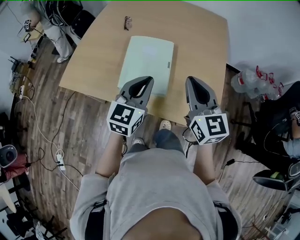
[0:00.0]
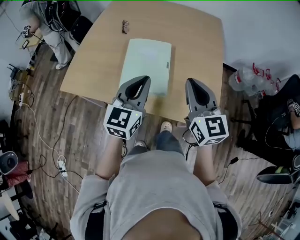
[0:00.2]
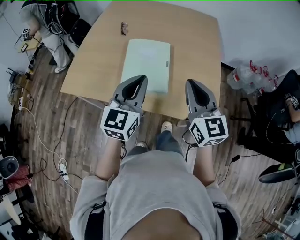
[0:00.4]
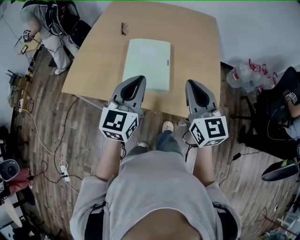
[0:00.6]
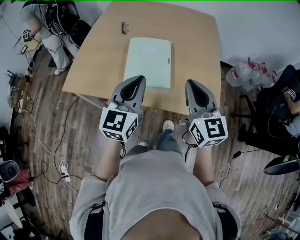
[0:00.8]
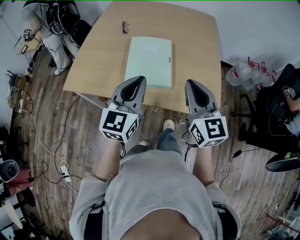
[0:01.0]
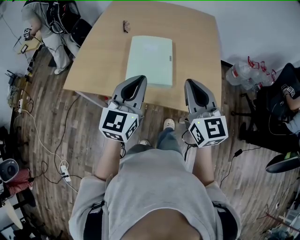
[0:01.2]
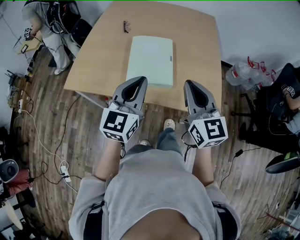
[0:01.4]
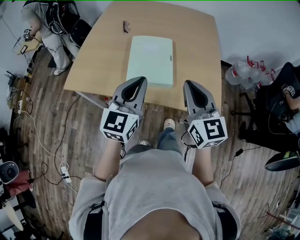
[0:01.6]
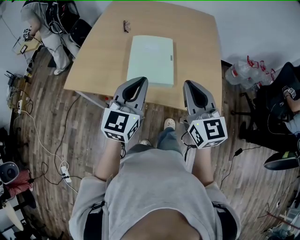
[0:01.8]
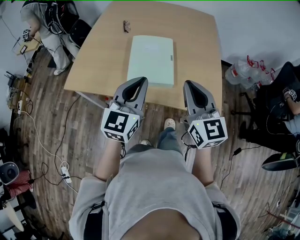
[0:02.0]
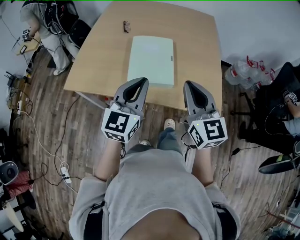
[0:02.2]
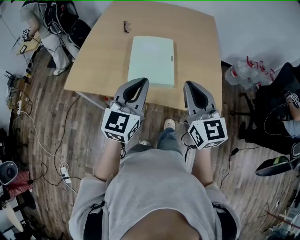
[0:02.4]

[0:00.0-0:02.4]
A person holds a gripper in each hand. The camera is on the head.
0:00.0 to 0:01.2: The right gripper travels backward by about 10 cm. The left gripper travels backward, to the left and upward by roughly 10 cm.
0:01.2 to 0:02.4: The grippers stay close to where they were, moving slightly.

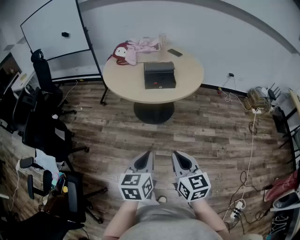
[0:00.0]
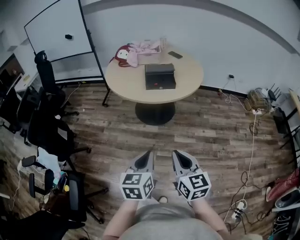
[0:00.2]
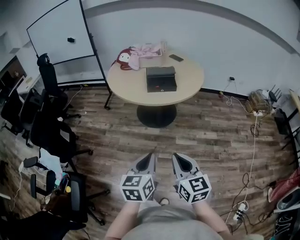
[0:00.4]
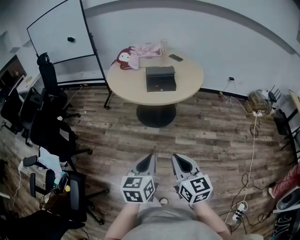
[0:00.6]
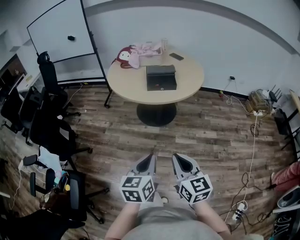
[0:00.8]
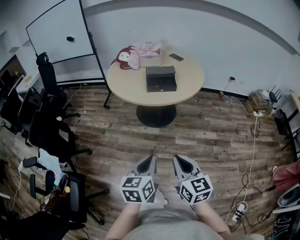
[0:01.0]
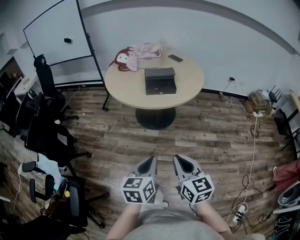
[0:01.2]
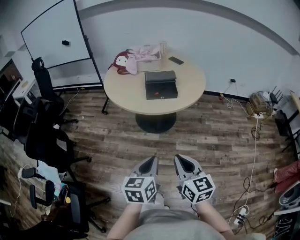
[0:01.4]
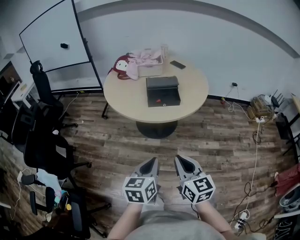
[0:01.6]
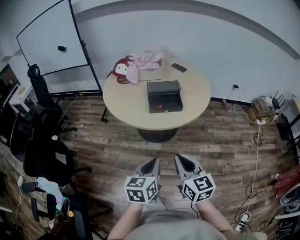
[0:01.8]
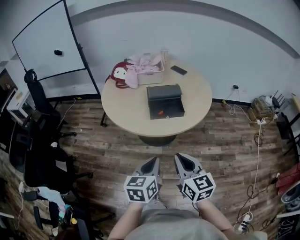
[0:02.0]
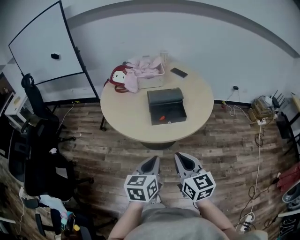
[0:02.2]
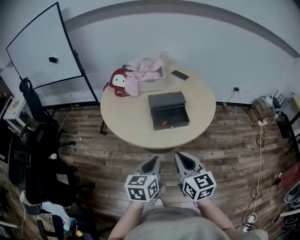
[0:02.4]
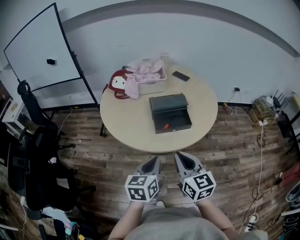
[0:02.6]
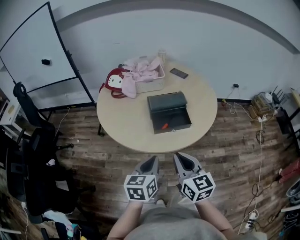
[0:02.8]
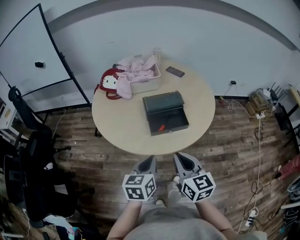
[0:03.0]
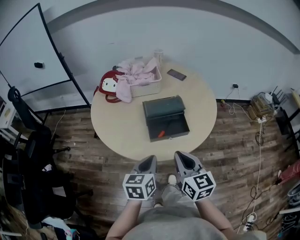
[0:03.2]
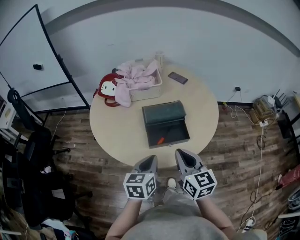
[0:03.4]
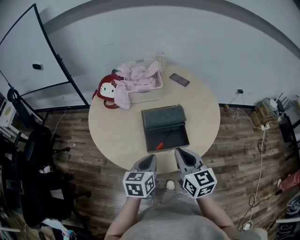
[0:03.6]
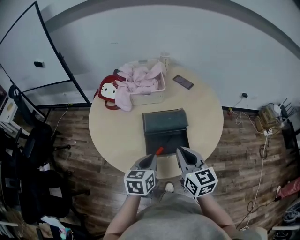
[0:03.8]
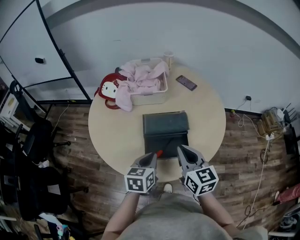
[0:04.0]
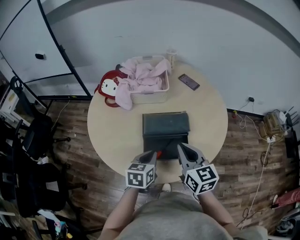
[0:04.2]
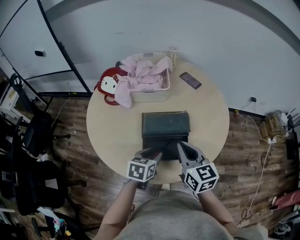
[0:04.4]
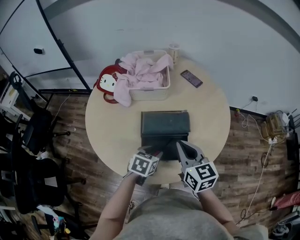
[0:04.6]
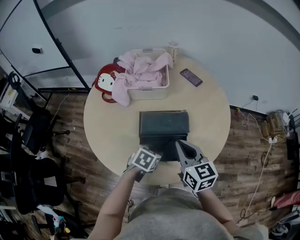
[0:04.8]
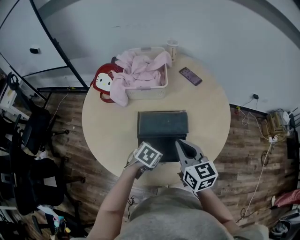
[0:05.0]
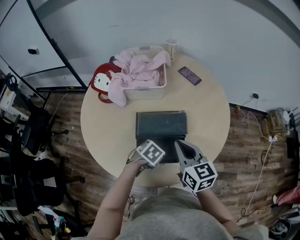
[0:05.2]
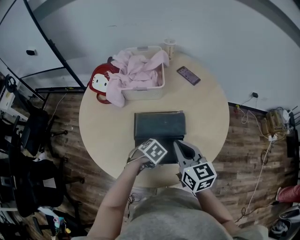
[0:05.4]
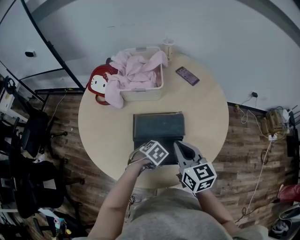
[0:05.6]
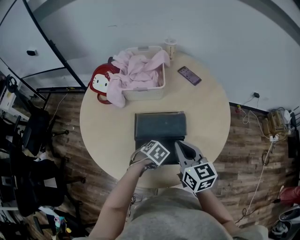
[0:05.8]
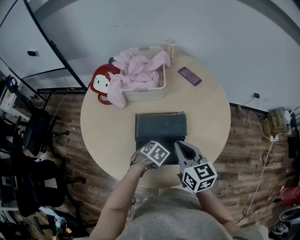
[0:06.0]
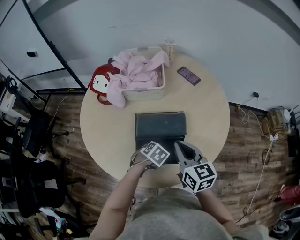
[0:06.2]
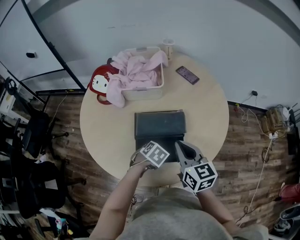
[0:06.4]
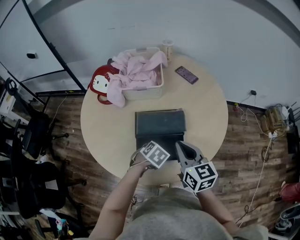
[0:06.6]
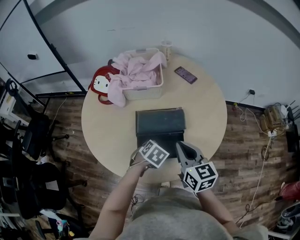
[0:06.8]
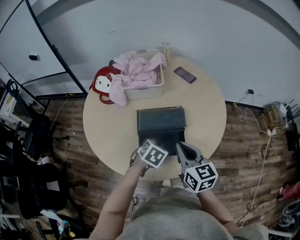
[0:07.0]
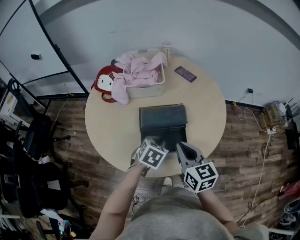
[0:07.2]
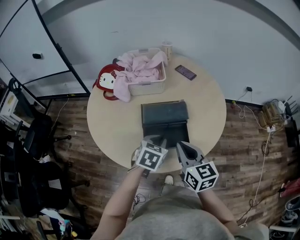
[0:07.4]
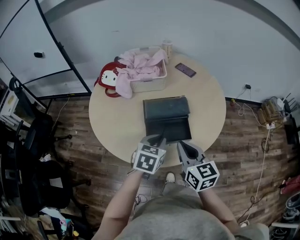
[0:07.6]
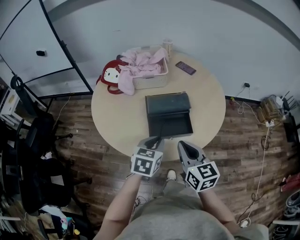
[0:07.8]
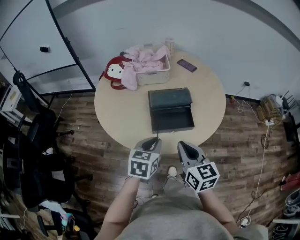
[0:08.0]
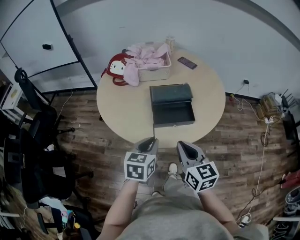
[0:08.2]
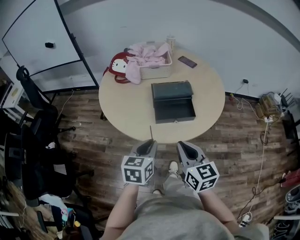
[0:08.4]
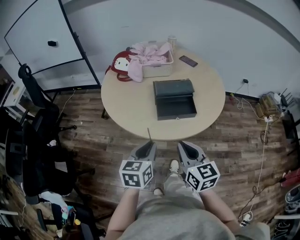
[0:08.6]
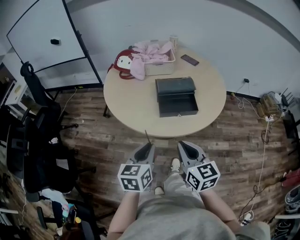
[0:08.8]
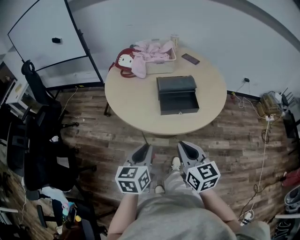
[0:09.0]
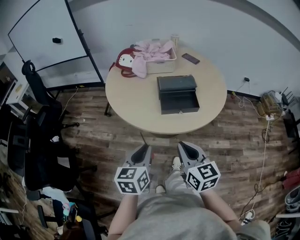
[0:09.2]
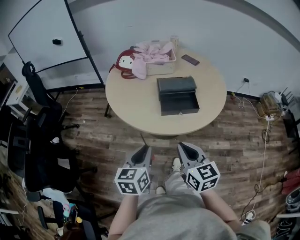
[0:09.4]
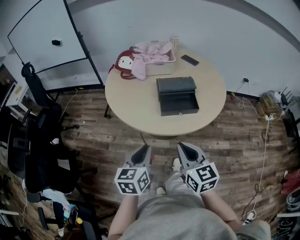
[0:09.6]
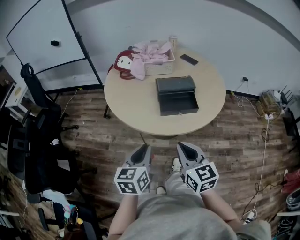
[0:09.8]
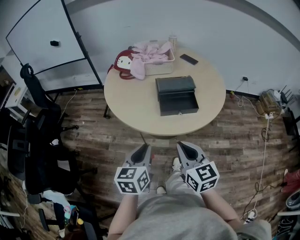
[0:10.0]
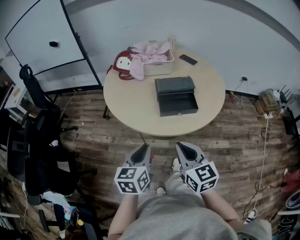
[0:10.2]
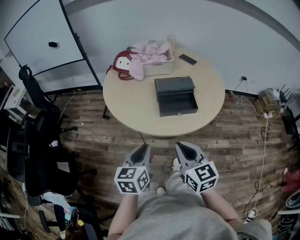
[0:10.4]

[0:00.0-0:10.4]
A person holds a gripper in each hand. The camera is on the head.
0:00.0 to 0:01.4: The grippers make only small movements.
0:01.4 to 0:03.0: Both grippers travel together forward, roughly 30 cm.
0:03.0 to 0:04.4: The left gripper heads forward and downward, covering roughly 25 cm, and opens its fingers, while the right gripper moves forward, about 25 cm.
0:04.4 to 0:06.0: The left gripper travels downward by about 10 cm, angles its fingers downward, by roughly 30 degrees, and closes. Meanwhile the right gripper shifts by roughly 5 cm.
0:06.0 to 0:07.4: The left gripper travels upward by about 15 cm, and swivels roughly 30 degrees; the right gripper travels backward by roughly 10 cm.
0:07.4 to 0:09.0: The left gripper is displaced backward and to the left by some 30 cm, and rotates some 30 degrees, while the right gripper travels backward by approximately 25 cm.
0:09.0 to 0:10.4: There are only small adjustments of the grippers.

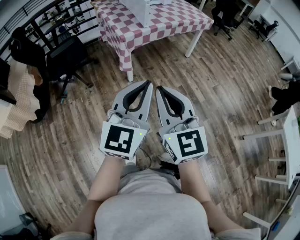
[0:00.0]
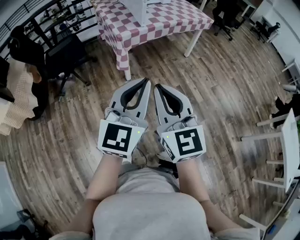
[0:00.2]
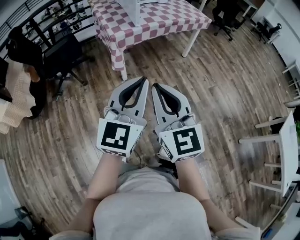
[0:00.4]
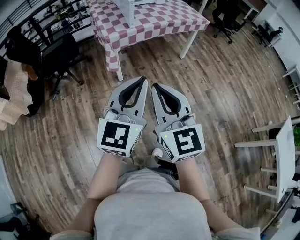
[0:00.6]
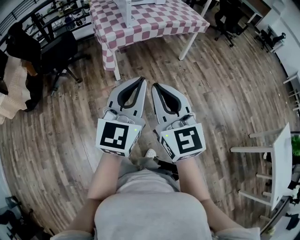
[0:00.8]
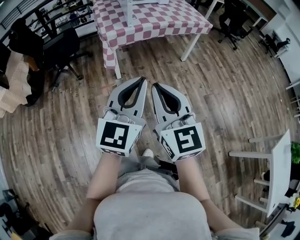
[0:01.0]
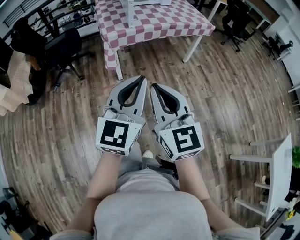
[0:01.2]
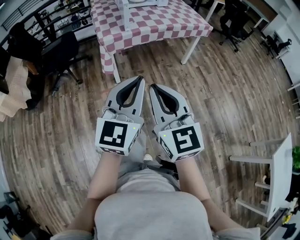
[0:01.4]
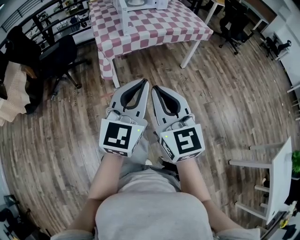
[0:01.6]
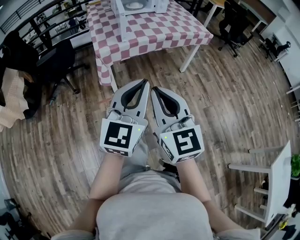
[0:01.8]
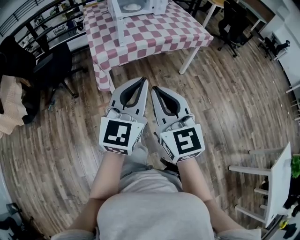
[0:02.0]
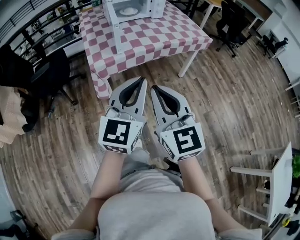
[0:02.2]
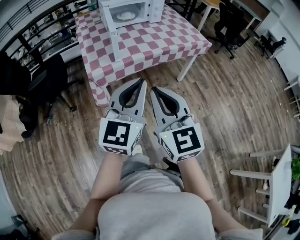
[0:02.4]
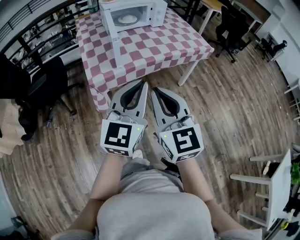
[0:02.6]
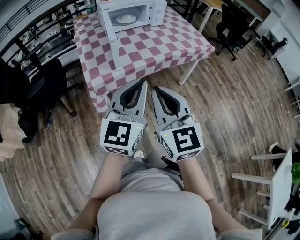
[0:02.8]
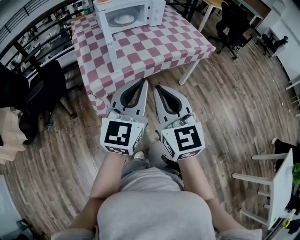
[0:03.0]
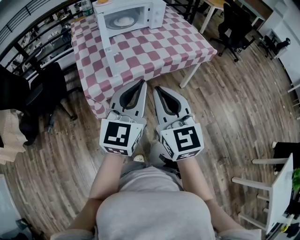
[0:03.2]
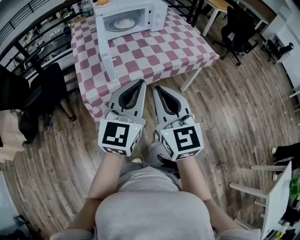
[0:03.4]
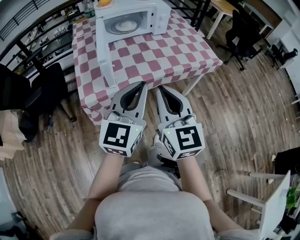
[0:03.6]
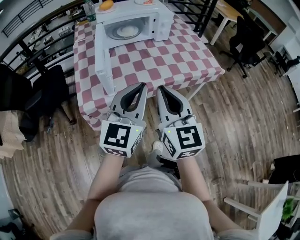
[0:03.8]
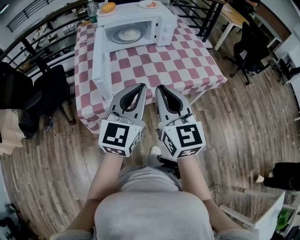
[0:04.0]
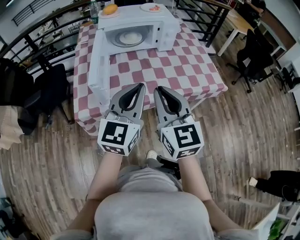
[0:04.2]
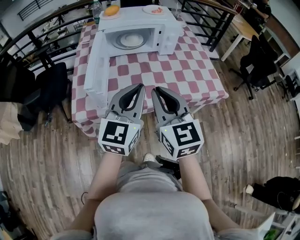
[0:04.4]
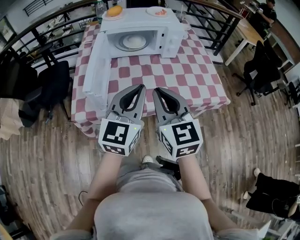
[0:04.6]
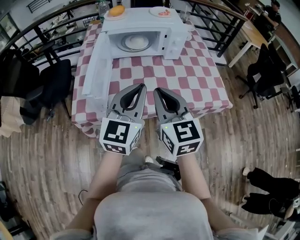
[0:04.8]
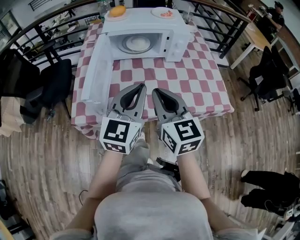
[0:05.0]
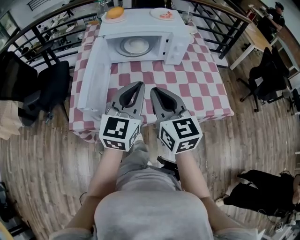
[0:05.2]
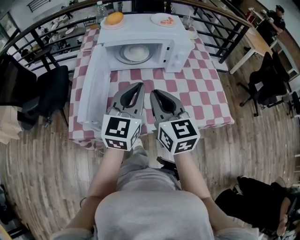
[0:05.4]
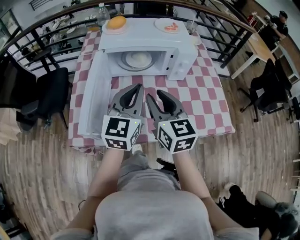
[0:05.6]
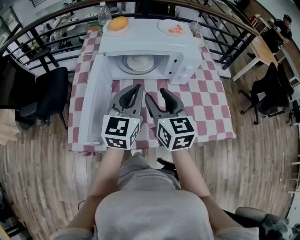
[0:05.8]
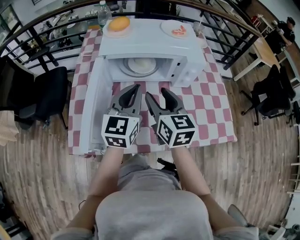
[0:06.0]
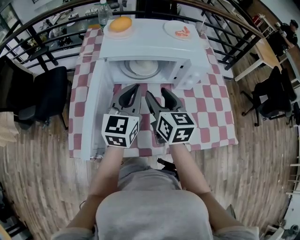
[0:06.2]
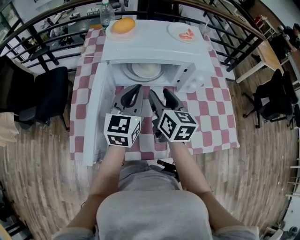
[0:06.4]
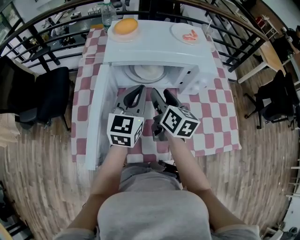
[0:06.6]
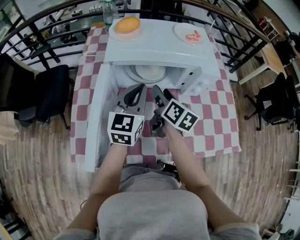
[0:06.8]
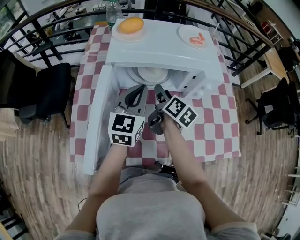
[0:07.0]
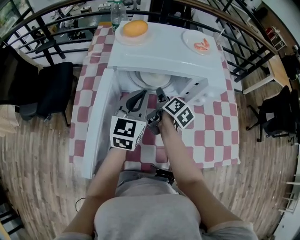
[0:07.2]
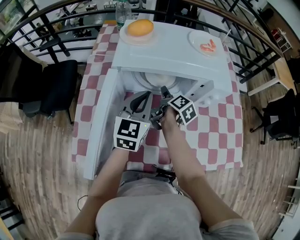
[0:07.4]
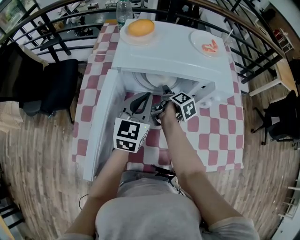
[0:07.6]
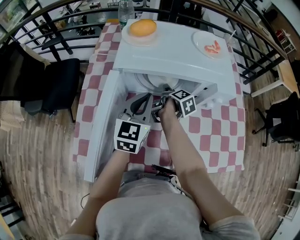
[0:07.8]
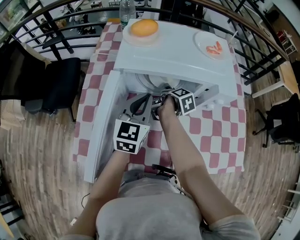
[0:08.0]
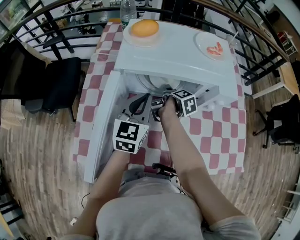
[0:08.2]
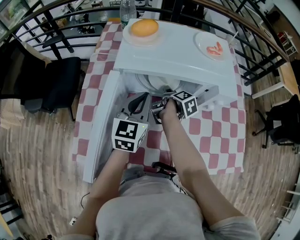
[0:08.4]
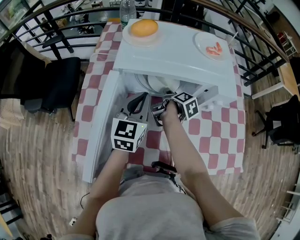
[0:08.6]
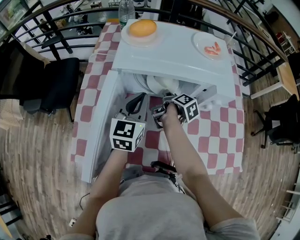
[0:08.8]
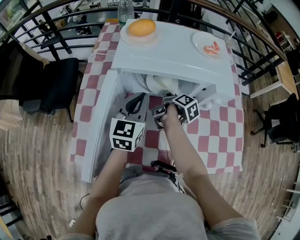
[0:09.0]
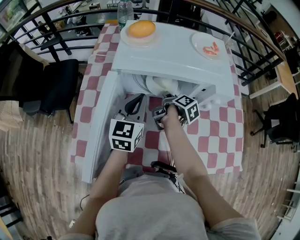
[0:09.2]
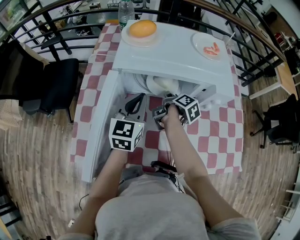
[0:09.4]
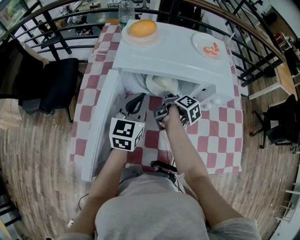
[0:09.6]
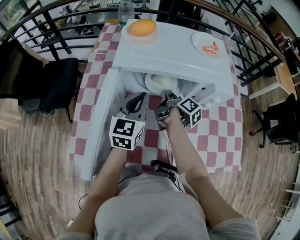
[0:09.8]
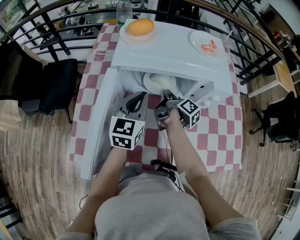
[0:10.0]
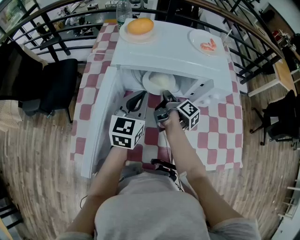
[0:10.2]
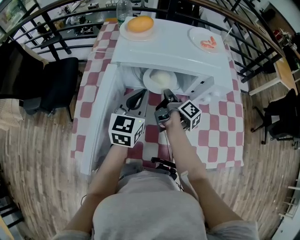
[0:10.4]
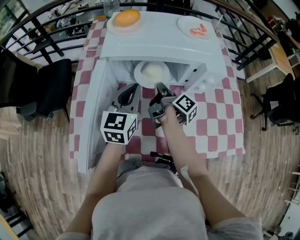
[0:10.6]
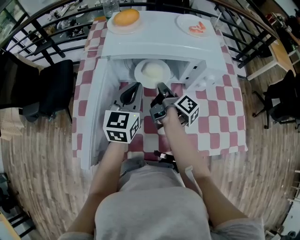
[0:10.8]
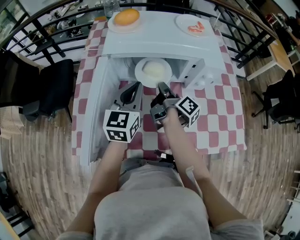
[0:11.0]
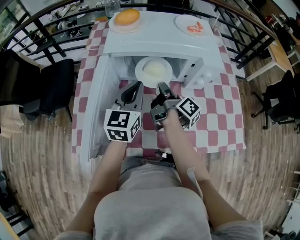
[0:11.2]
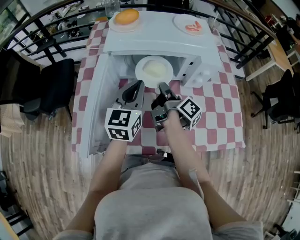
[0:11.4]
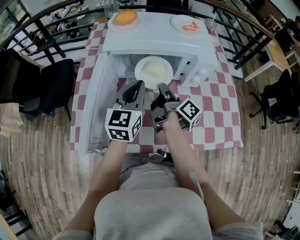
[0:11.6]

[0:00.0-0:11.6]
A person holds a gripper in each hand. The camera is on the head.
0:00.0 to 0:01.4: The right gripper shifts some 20 cm to the right; the left gripper shifts about 25 cm to the right and forward.
0:01.4 to 0:02.8: Both grippers travel together forward, some 30 cm.
0:02.8 to 0:04.4: Both grippers travel together forward, approximately 30 cm.
0:04.4 to 0:05.8: The grippers both shift forward by some 25 cm. The right gripper opens up.
0:05.8 to 0:07.2: The left gripper travels forward and downward by some 15 cm. Meanwhile the right gripper goes some 25 cm forward and downward, and twists roughly 50 degrees clockwise, seen from behind.
0:07.2 to 0:08.8: The right gripper moves downward, approximately 5 cm, and changes its angle by about 20 degrees.
0:08.8 to 0:10.2: The right gripper rotates approximately 20 degrees, and closes its fingers.
0:10.2 to 0:11.6: The right gripper shifts approximately 10 cm backward and upward. Meanwhile the left gripper goes about 5 cm backward.
